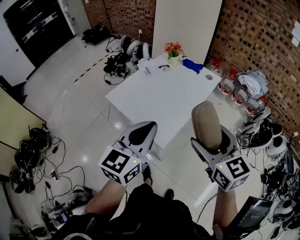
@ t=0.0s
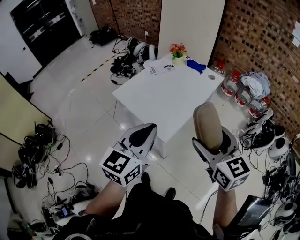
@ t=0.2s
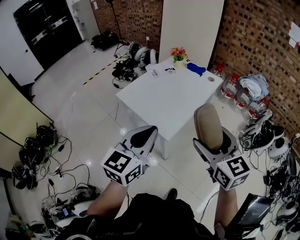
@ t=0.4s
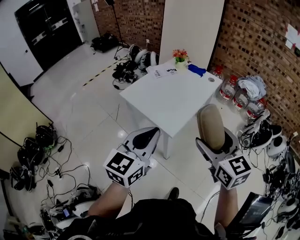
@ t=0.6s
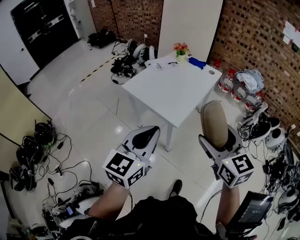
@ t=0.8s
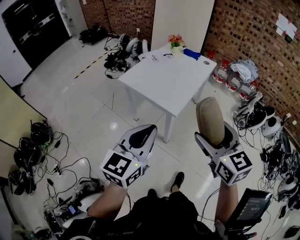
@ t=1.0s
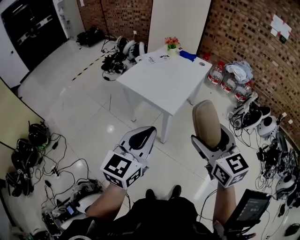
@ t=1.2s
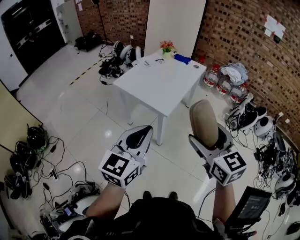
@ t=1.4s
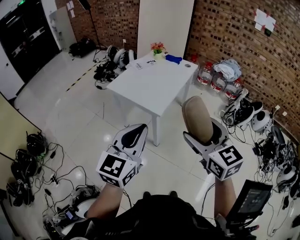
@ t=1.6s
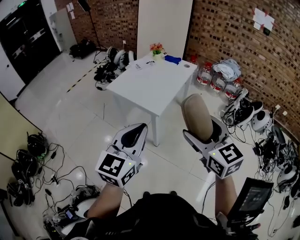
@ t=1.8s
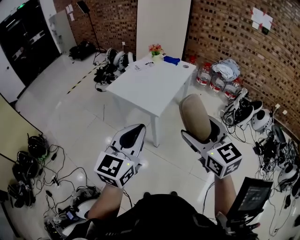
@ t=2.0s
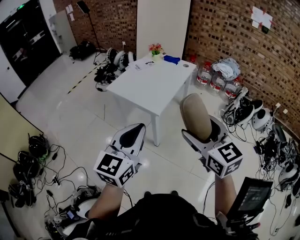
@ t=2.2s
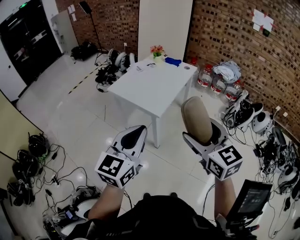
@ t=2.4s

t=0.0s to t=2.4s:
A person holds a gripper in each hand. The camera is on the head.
t=0.0s to t=1.2s: The two grippers go approximately 25 cm backward.
t=1.2s to t=2.4s: The grippers both shift to the right by some 5 cm.

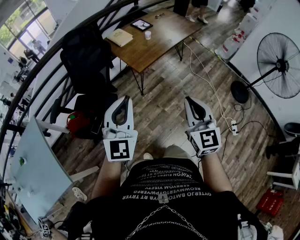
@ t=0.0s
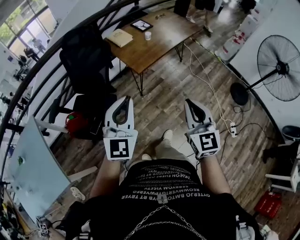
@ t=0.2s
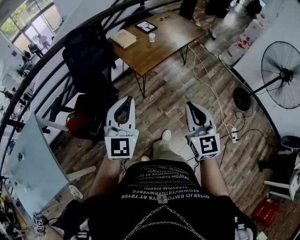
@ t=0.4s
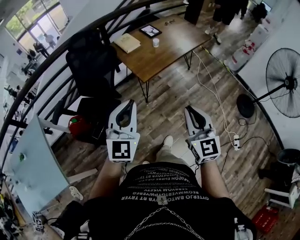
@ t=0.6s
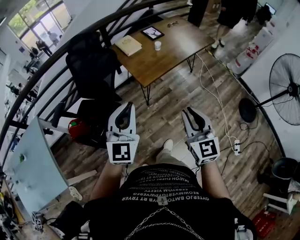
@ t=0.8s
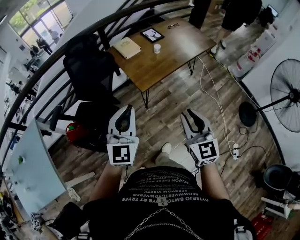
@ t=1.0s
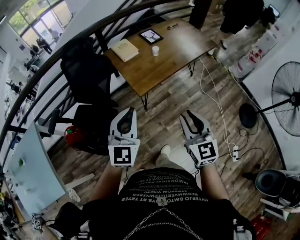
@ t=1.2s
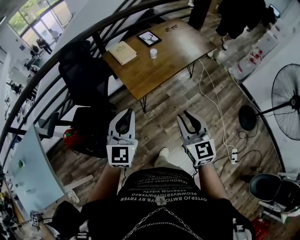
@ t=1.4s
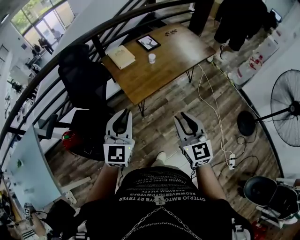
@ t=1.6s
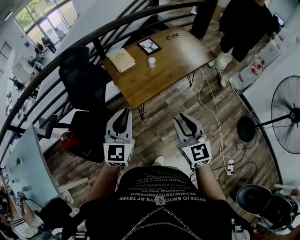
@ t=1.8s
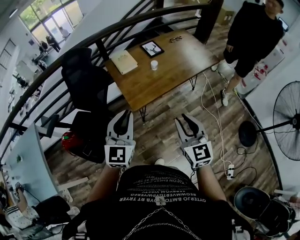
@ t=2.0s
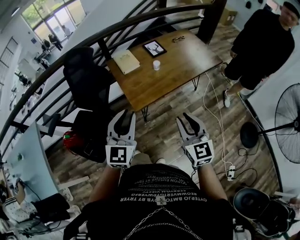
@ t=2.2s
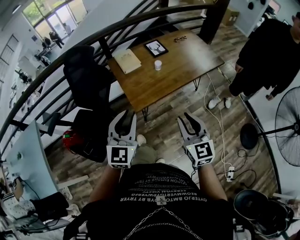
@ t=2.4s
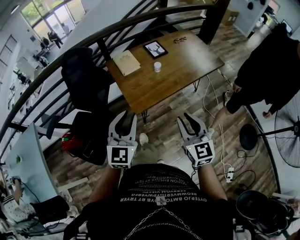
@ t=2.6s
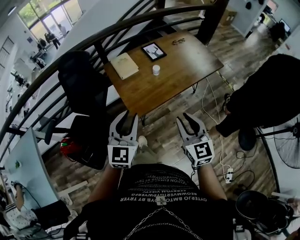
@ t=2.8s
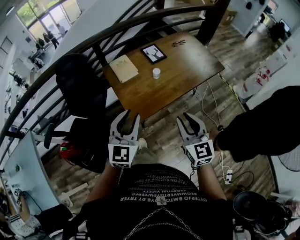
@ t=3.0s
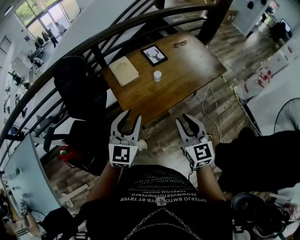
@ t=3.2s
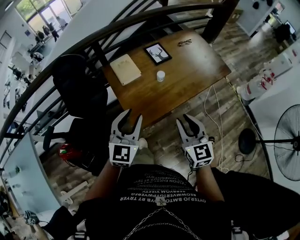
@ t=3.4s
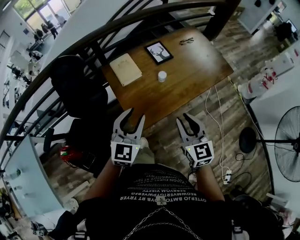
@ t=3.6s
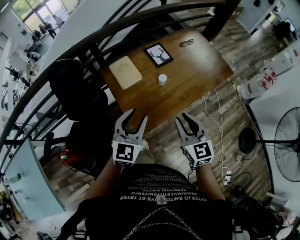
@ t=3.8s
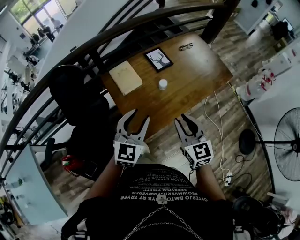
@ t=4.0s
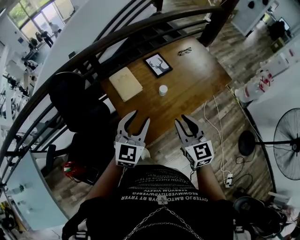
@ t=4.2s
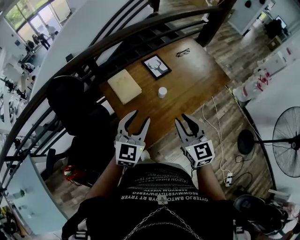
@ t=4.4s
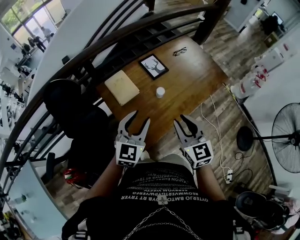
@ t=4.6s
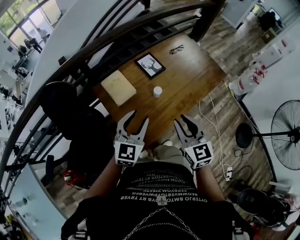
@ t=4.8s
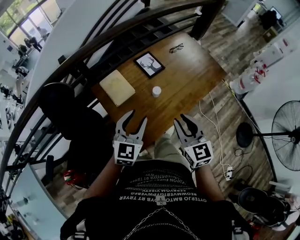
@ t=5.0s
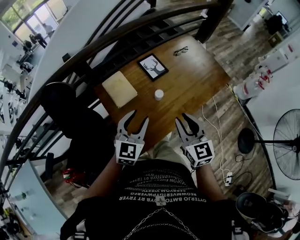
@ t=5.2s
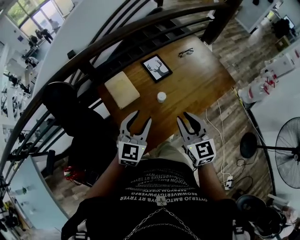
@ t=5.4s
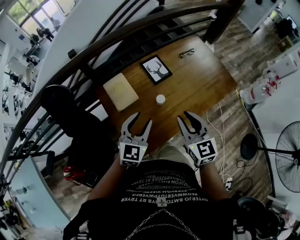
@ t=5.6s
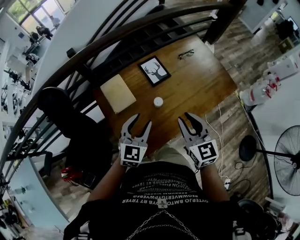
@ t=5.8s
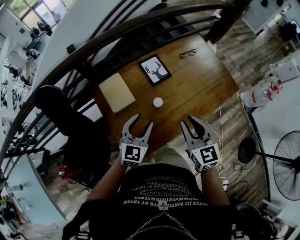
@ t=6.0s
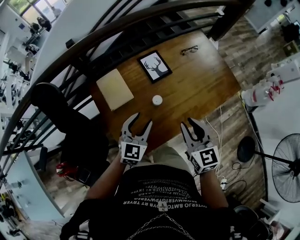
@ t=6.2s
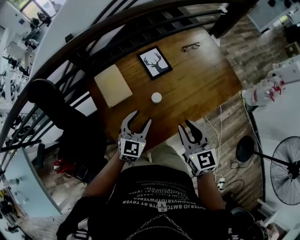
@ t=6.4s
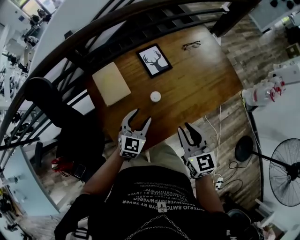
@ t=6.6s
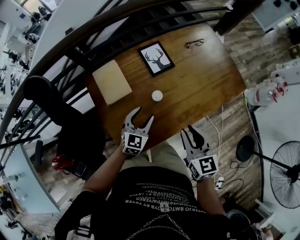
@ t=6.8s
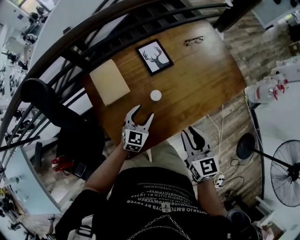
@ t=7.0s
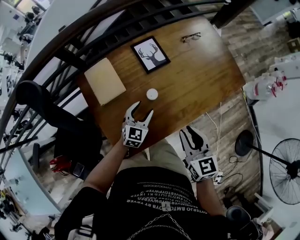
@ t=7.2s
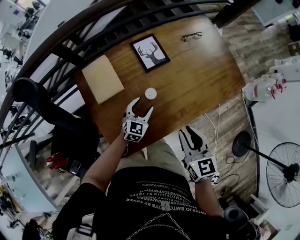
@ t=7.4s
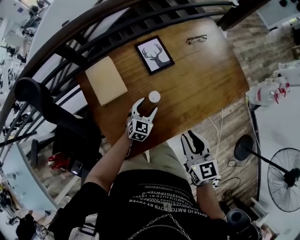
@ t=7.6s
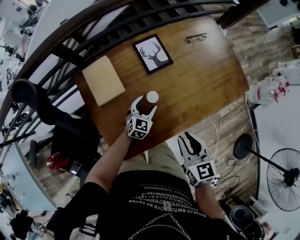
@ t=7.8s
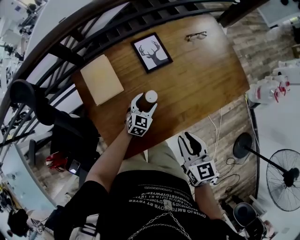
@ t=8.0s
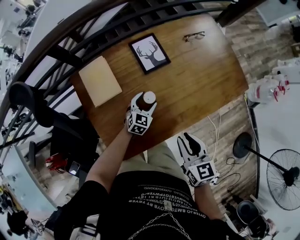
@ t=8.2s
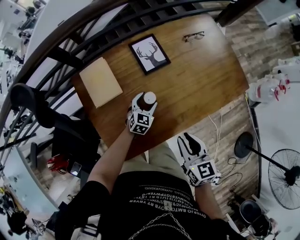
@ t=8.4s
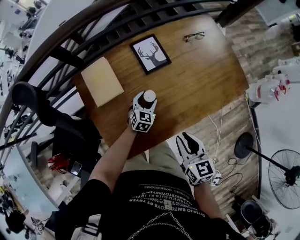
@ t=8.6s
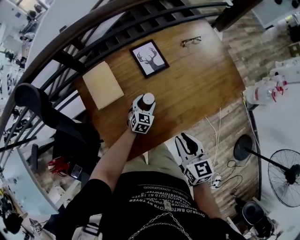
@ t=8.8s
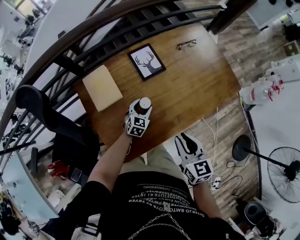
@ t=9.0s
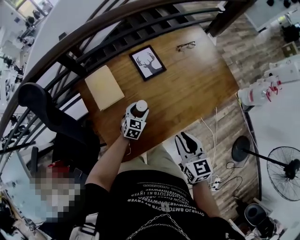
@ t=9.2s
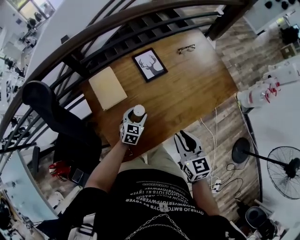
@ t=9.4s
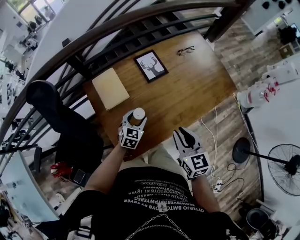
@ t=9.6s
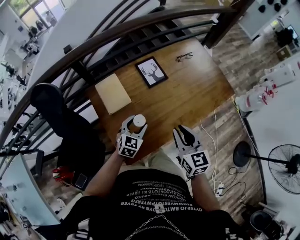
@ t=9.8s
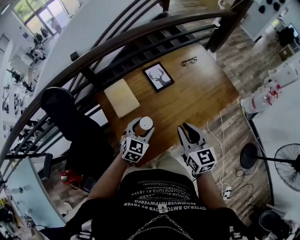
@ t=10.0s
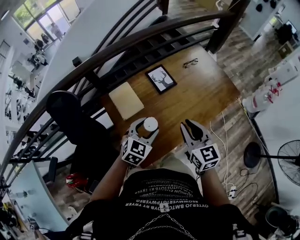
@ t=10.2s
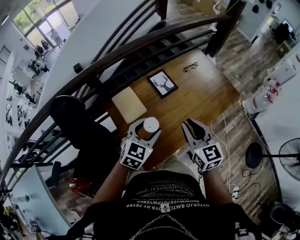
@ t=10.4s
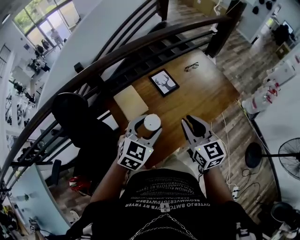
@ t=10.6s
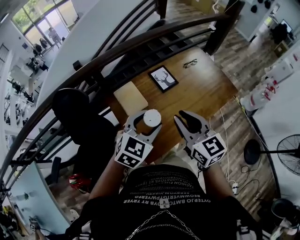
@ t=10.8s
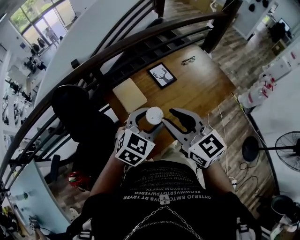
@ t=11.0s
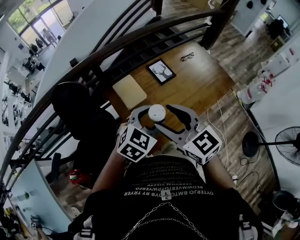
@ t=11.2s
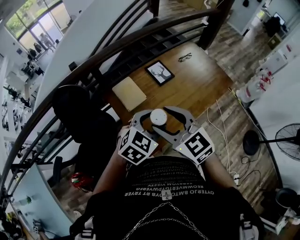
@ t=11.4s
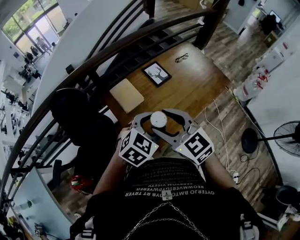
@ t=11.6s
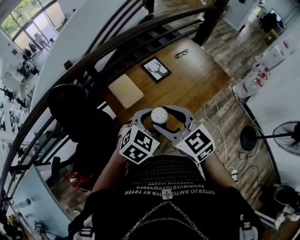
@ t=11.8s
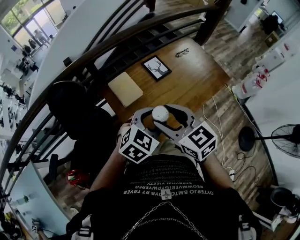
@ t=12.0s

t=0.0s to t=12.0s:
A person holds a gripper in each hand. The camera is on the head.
t=0.0s to t=1.6s: The right gripper shifts roughly 25 cm forward, and opens its fingers, while the left gripper is displaced forward and to the right by some 25 cm.
t=1.6s to t=3.0s: The grippers both shift forward by some 15 cm.
t=3.0s to t=4.4s: Both grippers travel together forward, about 20 cm.
t=4.4s to t=6.0s: The left gripper goes some 15 cm forward, downward and to the right; the right gripper heads forward, to the right and downward, covering approximately 15 cm.
t=6.0s to t=7.6s: The right gripper goes about 10 cm downward. Meanwhile the left gripper travels downward by roughly 25 cm.
t=7.6s to t=9.0s: The grippers make only small movements.
t=9.0s to t=10.4s: The left gripper shifts some 30 cm upward. Meanwhile the right gripper moves upward and to the left, roughly 20 cm.
t=10.4s to t=12.0s: The left gripper moves backward and upward, some 10 cm, while the right gripper shifts about 15 cm to the left, backward and upward, changes its angle by roughly 20 degrees, and opens up.

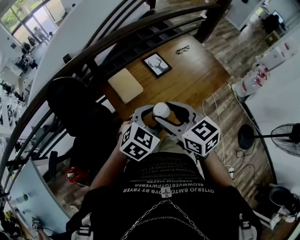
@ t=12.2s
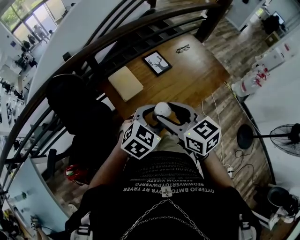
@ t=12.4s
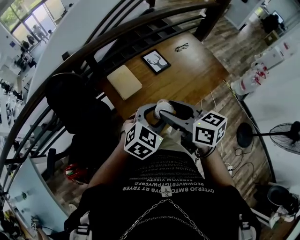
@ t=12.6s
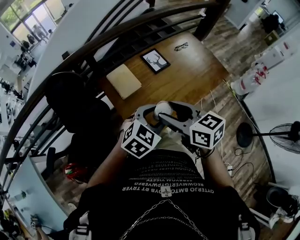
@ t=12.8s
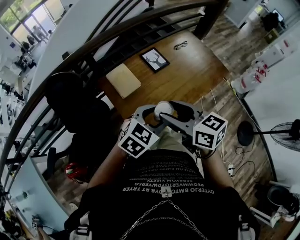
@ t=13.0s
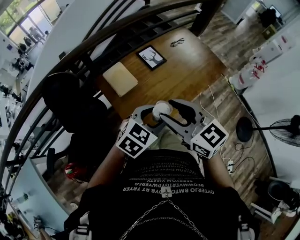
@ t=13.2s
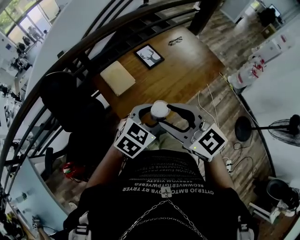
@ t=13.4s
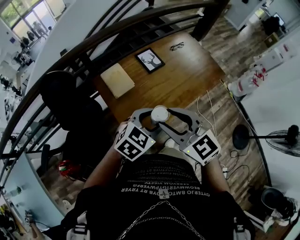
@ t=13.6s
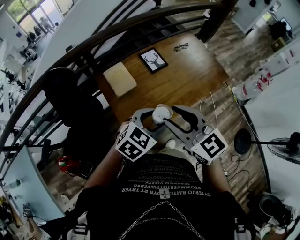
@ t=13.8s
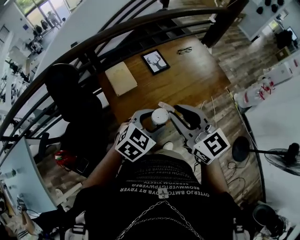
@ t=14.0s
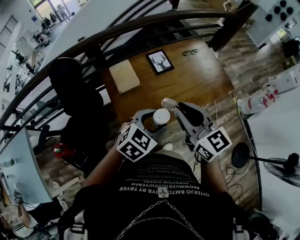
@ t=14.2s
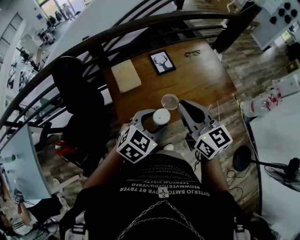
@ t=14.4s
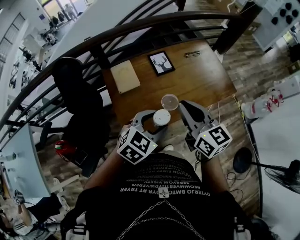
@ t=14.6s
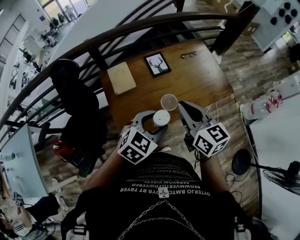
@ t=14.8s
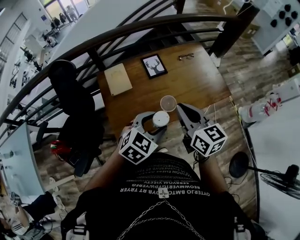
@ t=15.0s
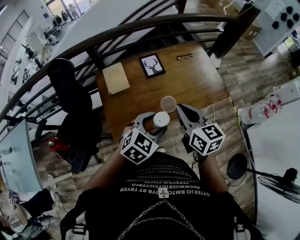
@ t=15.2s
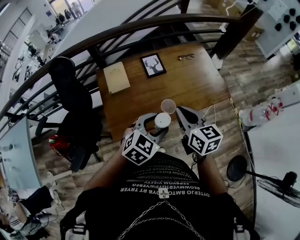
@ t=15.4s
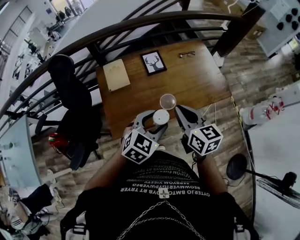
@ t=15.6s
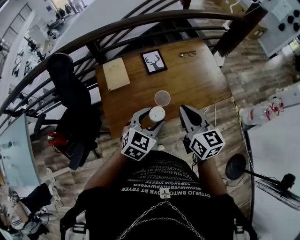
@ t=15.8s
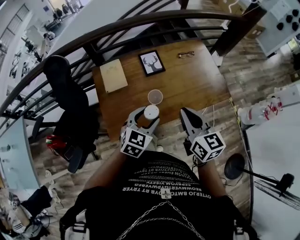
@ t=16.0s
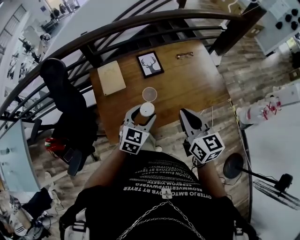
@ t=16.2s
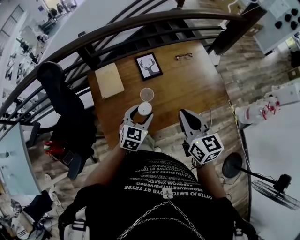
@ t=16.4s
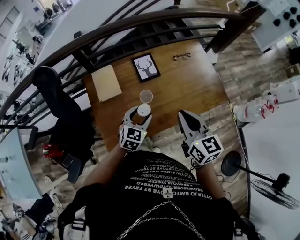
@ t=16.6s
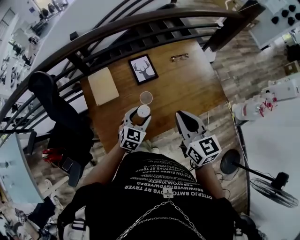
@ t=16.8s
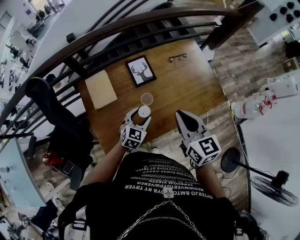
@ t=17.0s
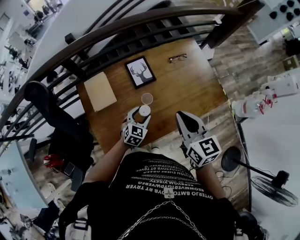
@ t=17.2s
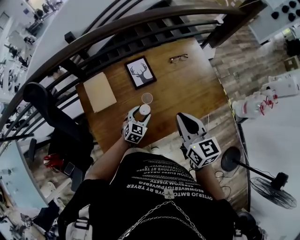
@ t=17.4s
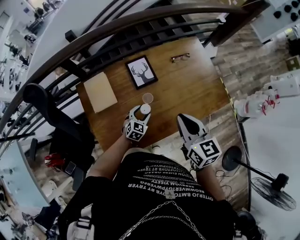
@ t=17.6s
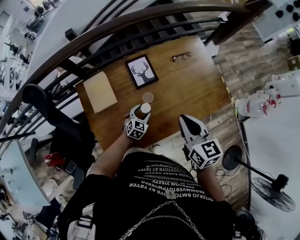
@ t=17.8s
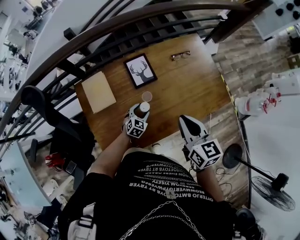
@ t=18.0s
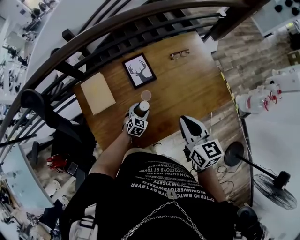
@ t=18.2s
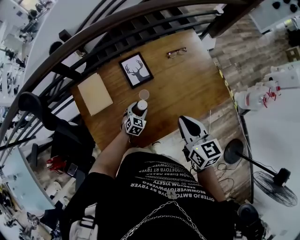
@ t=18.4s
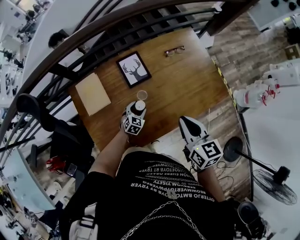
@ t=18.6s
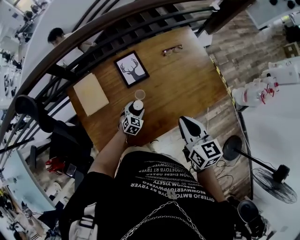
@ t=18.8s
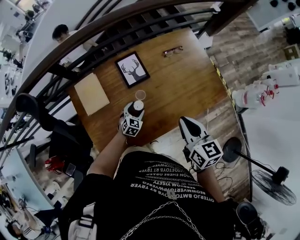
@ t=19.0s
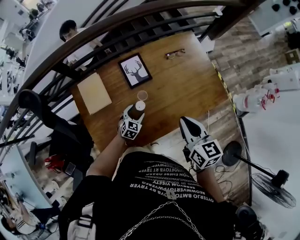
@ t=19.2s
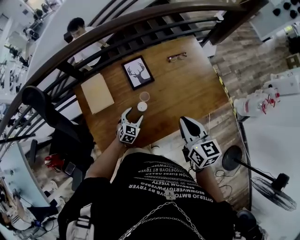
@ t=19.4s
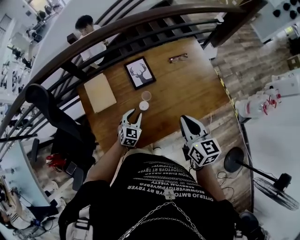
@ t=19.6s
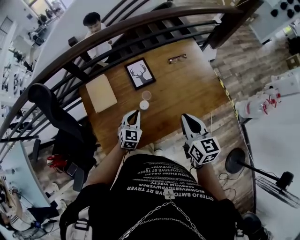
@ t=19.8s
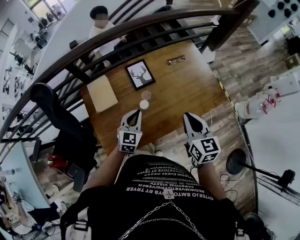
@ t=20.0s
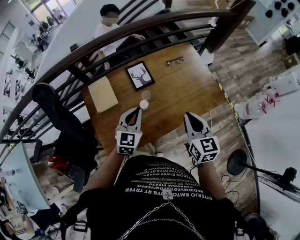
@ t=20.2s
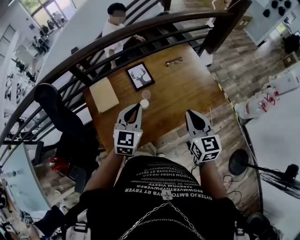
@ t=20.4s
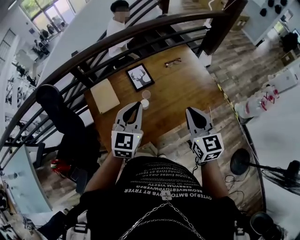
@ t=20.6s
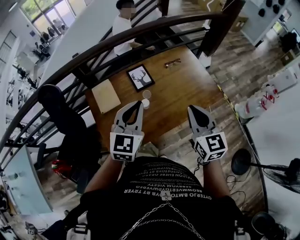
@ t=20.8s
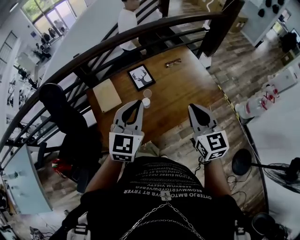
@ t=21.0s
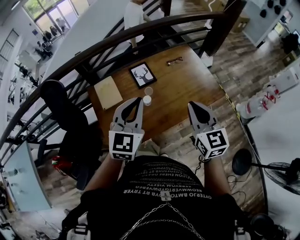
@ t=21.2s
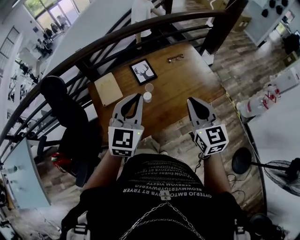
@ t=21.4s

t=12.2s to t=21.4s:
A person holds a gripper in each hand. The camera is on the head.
t=12.2s to t=13.8s: The two grippers go approximately 5 cm to the right.
t=13.8s to t=15.2s: The right gripper travels to the right and forward by approximately 20 cm, changes its angle by approximately 20 degrees, and closes. The left gripper is displaced to the right by some 15 cm.
t=15.2s to t=16.8s: The right gripper moves forward, roughly 10 cm. Meanwhile the left gripper moves forward and downward, approximately 25 cm.
t=16.8s to t=18.4s: The right gripper is displaced downward by roughly 5 cm. Meanwhile the left gripper goes roughly 20 cm downward and forward.
t=18.4s to t=19.8s: The left gripper travels upward by roughly 15 cm, and closes its fingers.
t=19.8s to t=21.4s: The left gripper heads upward, covering approximately 30 cm, while the right gripper is displaced upward and backward by about 15 cm, and rotates some 20 degrees.
